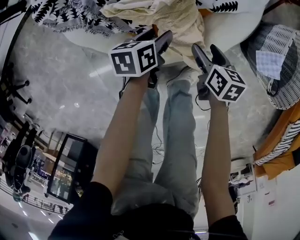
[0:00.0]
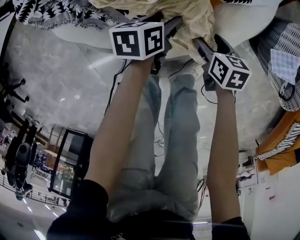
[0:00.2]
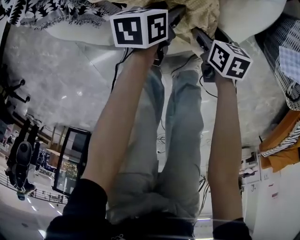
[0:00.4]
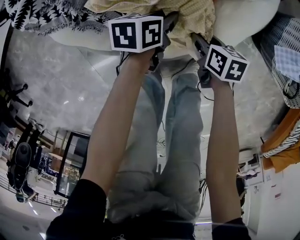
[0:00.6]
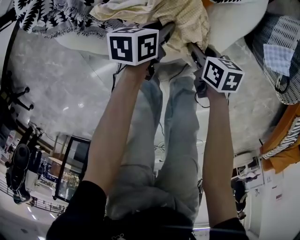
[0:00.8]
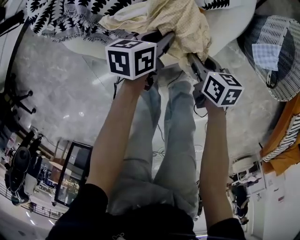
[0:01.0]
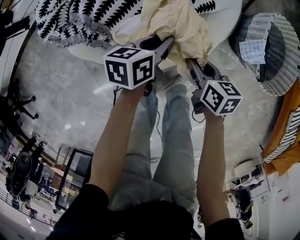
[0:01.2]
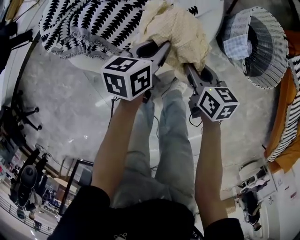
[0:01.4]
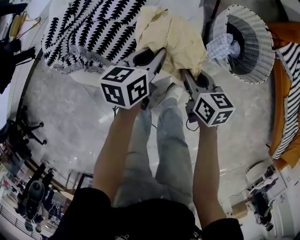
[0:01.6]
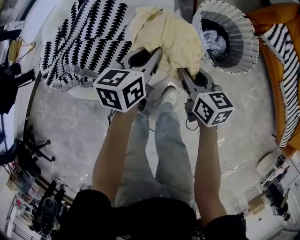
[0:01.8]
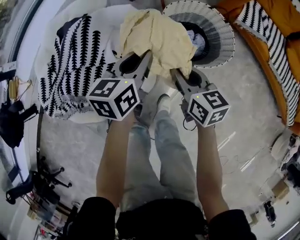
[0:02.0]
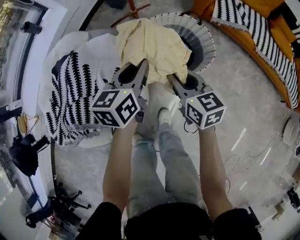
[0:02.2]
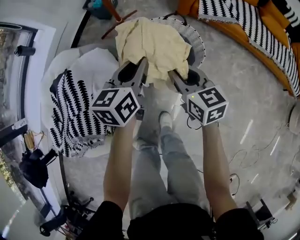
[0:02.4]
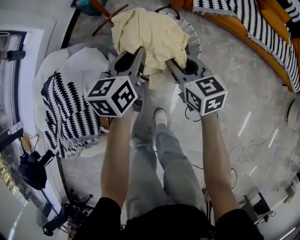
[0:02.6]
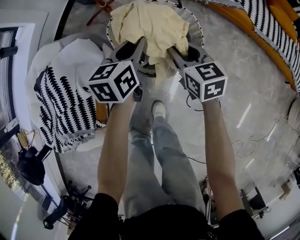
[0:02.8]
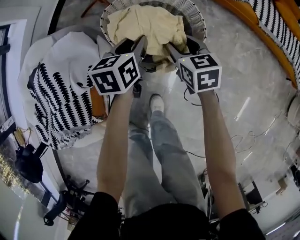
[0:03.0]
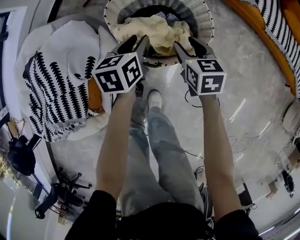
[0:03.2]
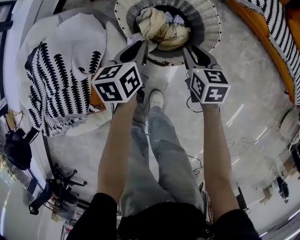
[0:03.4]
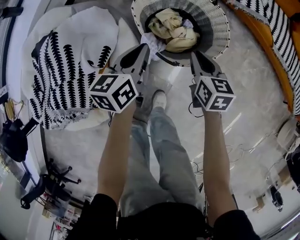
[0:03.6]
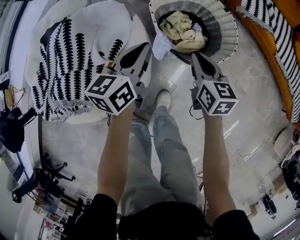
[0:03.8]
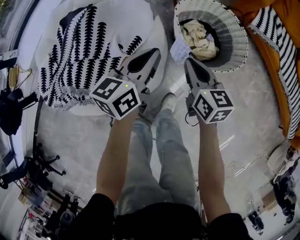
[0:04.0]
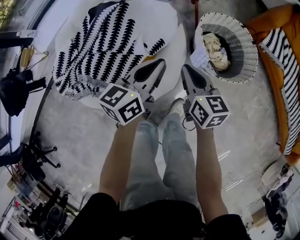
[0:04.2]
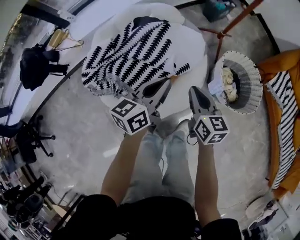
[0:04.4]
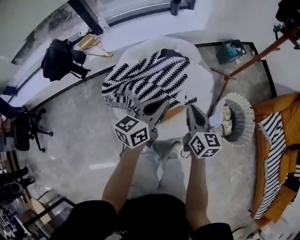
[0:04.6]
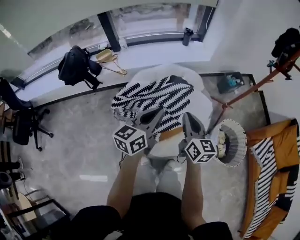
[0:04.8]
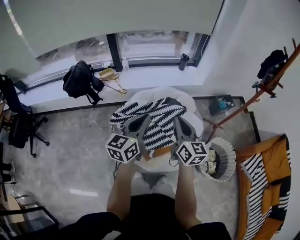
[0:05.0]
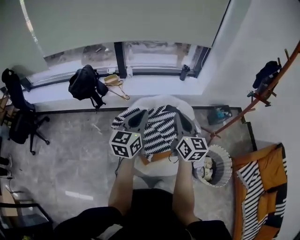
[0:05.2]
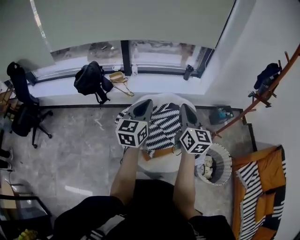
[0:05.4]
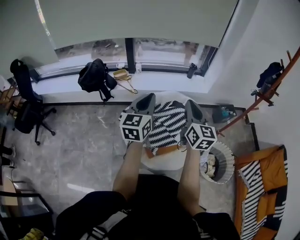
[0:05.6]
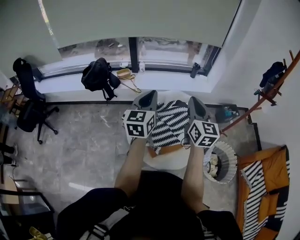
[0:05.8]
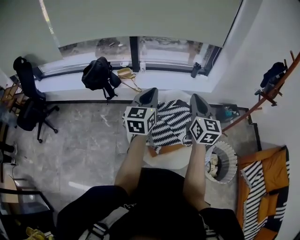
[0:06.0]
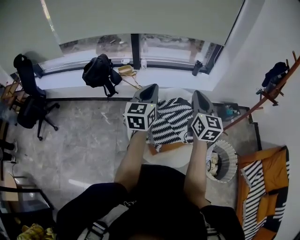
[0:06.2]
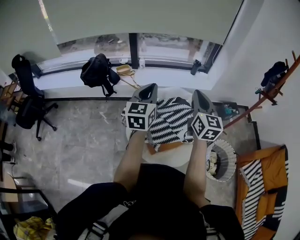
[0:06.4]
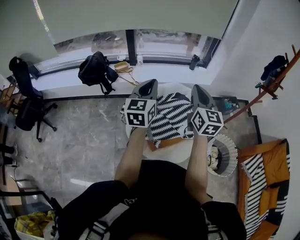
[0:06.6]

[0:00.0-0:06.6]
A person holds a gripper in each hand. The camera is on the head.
0:00.0 to 0:01.6: The left gripper goes roughly 25 cm upward and to the right, swivels approximately 30 degrees, and closes its fingers. Meanwhile the right gripper shifts roughly 20 cm upward, and closes its fingers.
0:01.6 to 0:03.2: The right gripper moves some 15 cm upward and comes back, turns by roughly 30 degrees, and opens up; the left gripper reaches about 15 cm upward, then returns, and changes its angle by roughly 20 degrees.
0:03.2 to 0:05.0: The pair of grippers is taken roughly 60 cm. The left gripper tilts its fingers approximately 40 degrees upward, and closes. The right gripper tilts its fingers some 40 degrees upward, and closes its fingers.
0:05.0 to 0:06.6: The right gripper heads upward, covering roughly 15 cm. Meanwhile the left gripper moves upward and to the left, roughly 10 cm, and swivels some 20 degrees.

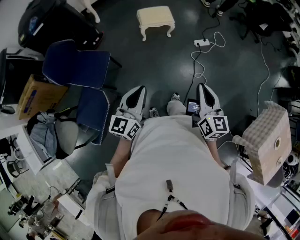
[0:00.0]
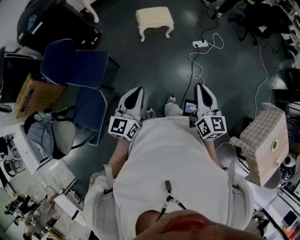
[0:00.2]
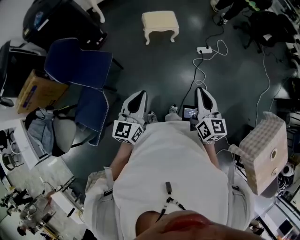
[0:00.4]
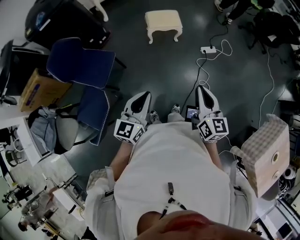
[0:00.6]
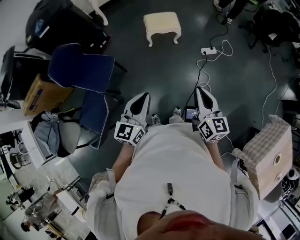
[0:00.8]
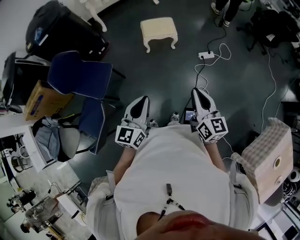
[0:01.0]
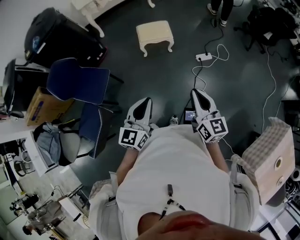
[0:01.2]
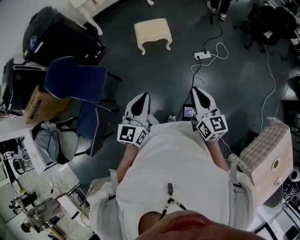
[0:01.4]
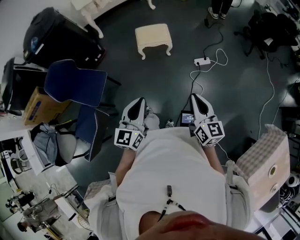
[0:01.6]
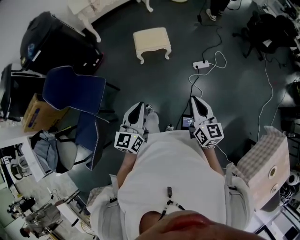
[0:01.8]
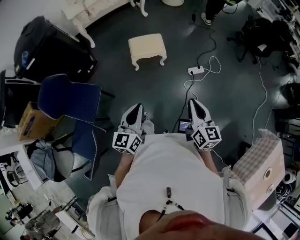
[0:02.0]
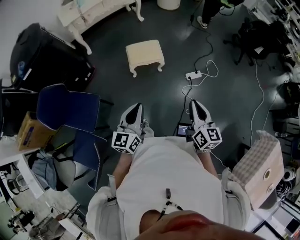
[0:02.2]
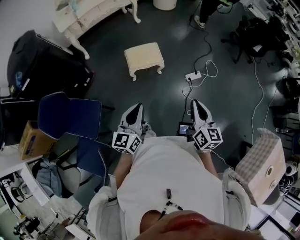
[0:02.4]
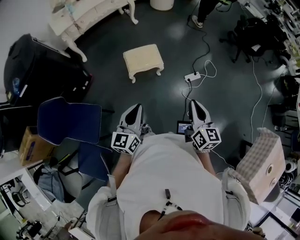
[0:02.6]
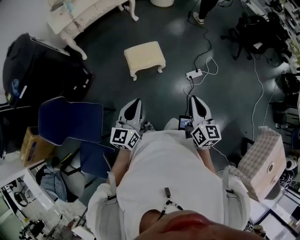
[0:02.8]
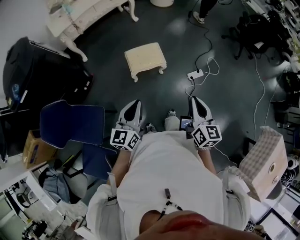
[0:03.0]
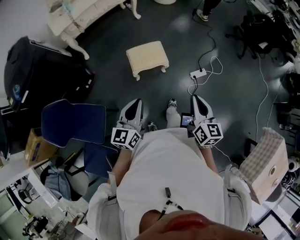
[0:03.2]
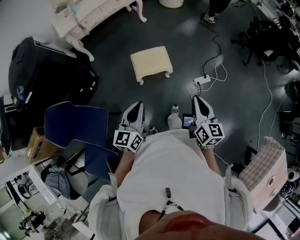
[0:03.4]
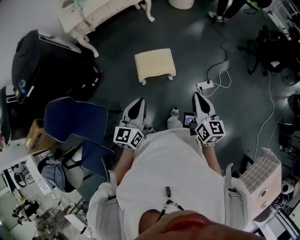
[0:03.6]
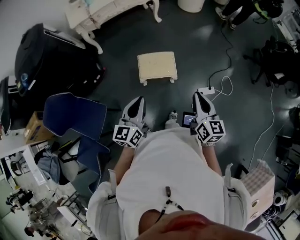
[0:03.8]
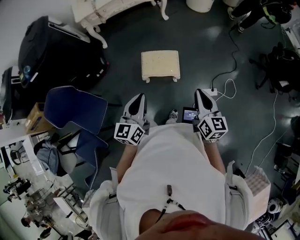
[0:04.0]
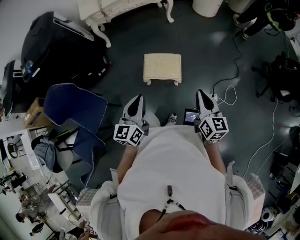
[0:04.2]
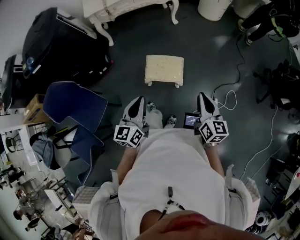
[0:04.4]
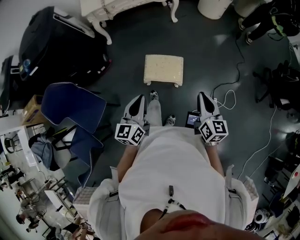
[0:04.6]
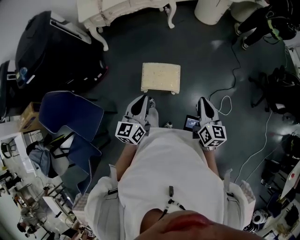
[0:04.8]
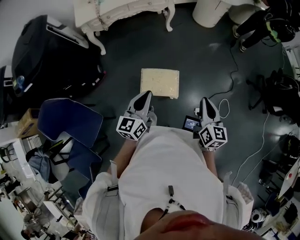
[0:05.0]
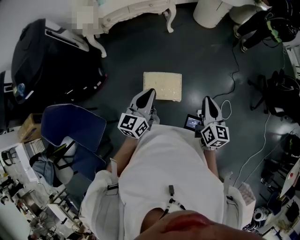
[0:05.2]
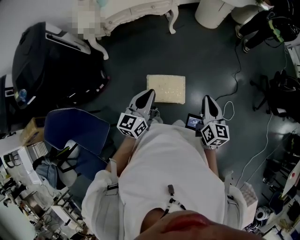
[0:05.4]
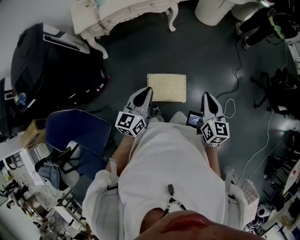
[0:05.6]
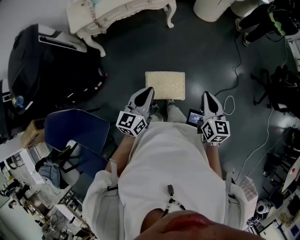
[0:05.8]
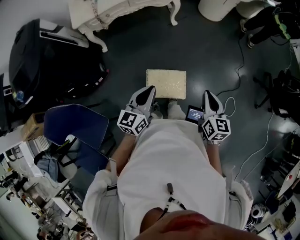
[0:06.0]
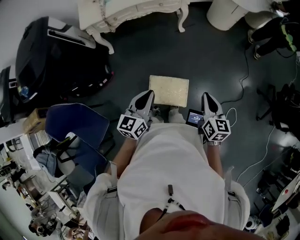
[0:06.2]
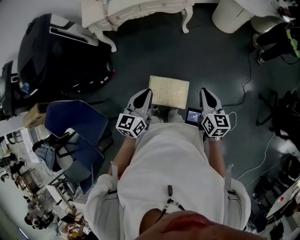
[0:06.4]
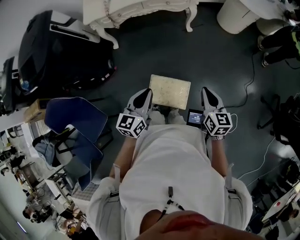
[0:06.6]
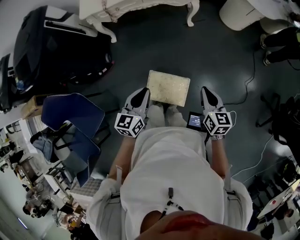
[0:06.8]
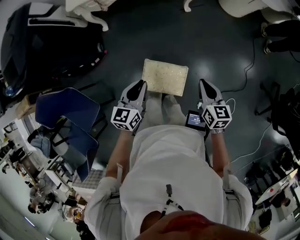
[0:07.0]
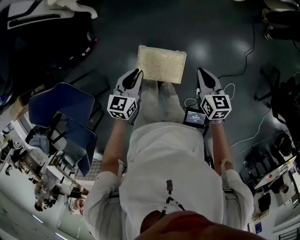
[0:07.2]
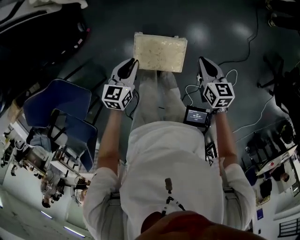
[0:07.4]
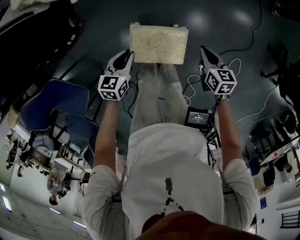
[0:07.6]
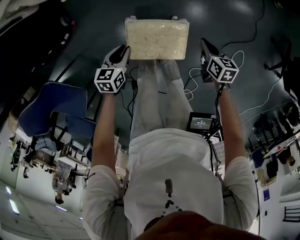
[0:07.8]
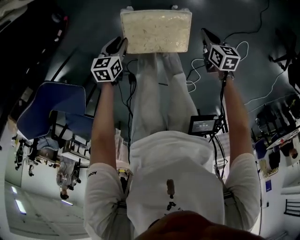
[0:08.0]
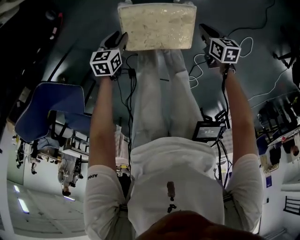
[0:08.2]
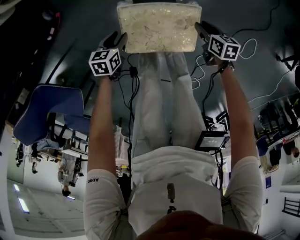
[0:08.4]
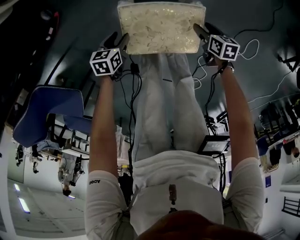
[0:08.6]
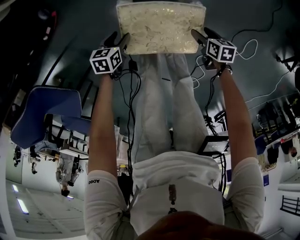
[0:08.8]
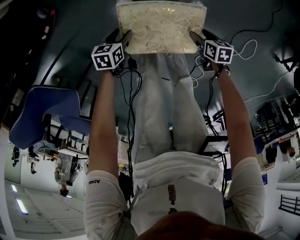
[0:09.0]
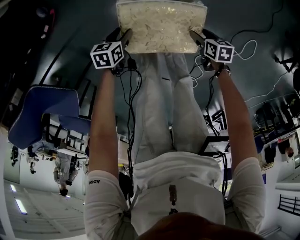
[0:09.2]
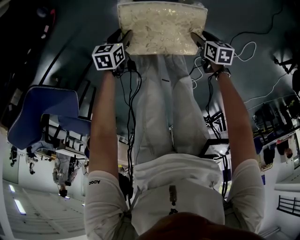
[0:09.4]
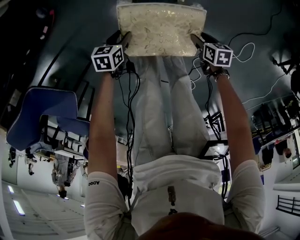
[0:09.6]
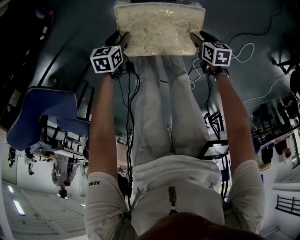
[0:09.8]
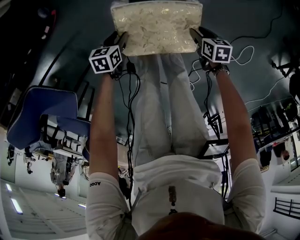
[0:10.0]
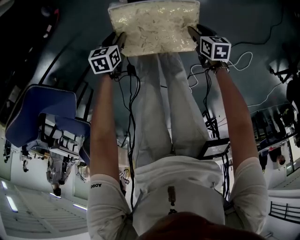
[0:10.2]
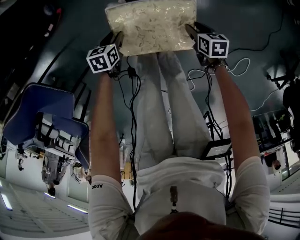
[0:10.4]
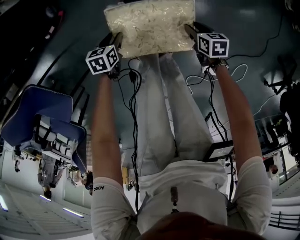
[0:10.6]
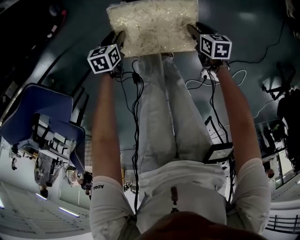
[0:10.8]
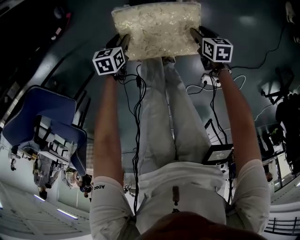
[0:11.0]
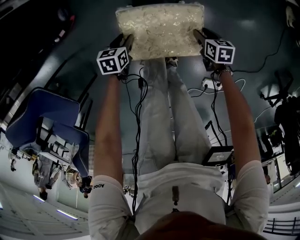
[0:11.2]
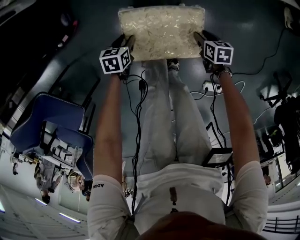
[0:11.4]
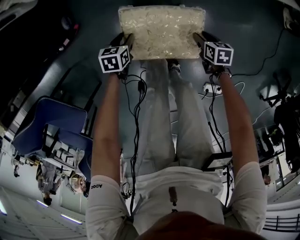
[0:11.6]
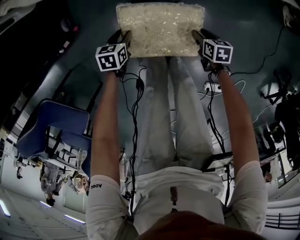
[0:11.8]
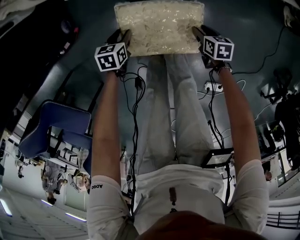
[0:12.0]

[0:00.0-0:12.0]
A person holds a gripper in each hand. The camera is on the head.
0:00.0 to 0:01.6: The left gripper is displaced to the right and forward by about 20 cm. The right gripper heads forward and to the right, covering some 15 cm.
0:01.6 to 0:03.0: Both grippers travel together forward and to the left, some 30 cm.
0:03.0 to 0:04.4: The right gripper heads forward, covering some 25 cm, and rotates roughly 20 degrees. The left gripper goes about 15 cm forward, and swivels about 30 degrees.
0:04.4 to 0:06.0: The two grippers go roughly 25 cm forward.
0:06.0 to 0:07.6: The right gripper shifts some 35 cm downward and forward, and changes its angle by roughly 30 degrees, while the left gripper moves downward, roughly 30 cm, and turns by roughly 30 degrees.
0:07.6 to 0:09.0: Both grippers travel together downward, approximately 30 cm. The right gripper turns by about 30 degrees, and opens its fingers. Meanwhile the left gripper turns by about 20 degrees, and opens up.
0:09.0 to 0:10.4: The right gripper heads forward, covering some 15 cm, and closes up. Meanwhile the left gripper goes some 5 cm forward.
0:10.4 to 0:12.0: The grippers both shift forward by about 20 cm.

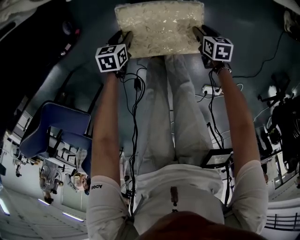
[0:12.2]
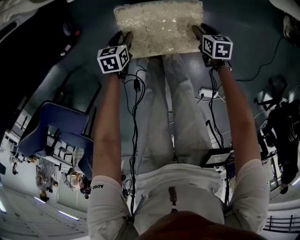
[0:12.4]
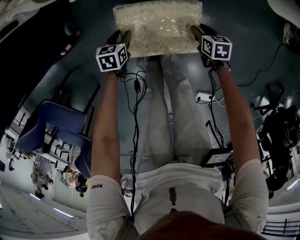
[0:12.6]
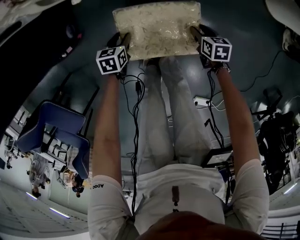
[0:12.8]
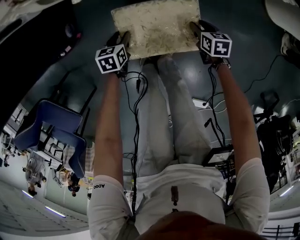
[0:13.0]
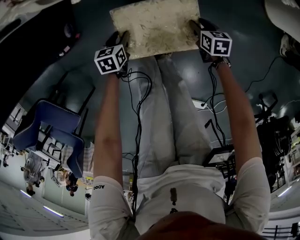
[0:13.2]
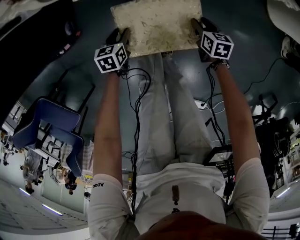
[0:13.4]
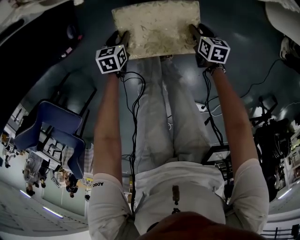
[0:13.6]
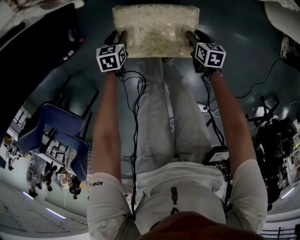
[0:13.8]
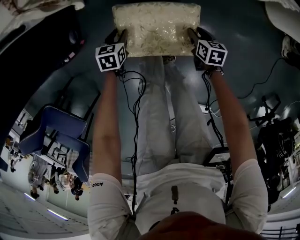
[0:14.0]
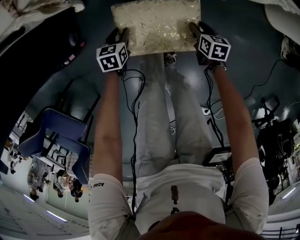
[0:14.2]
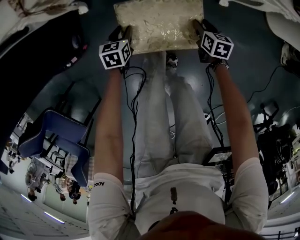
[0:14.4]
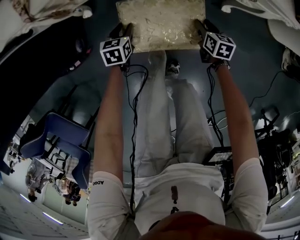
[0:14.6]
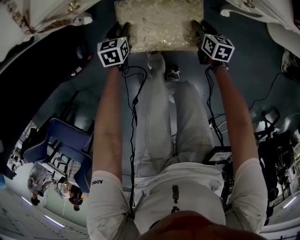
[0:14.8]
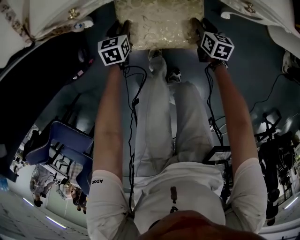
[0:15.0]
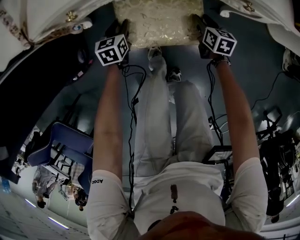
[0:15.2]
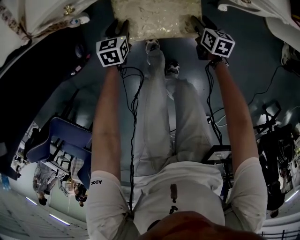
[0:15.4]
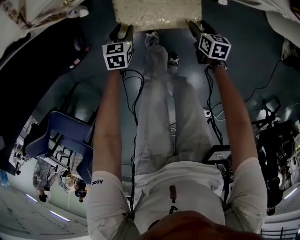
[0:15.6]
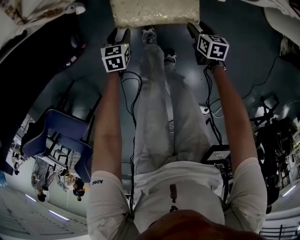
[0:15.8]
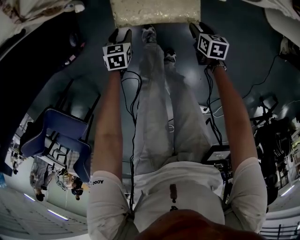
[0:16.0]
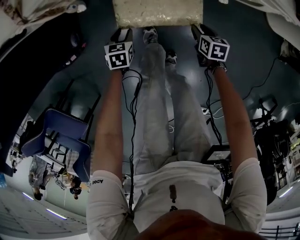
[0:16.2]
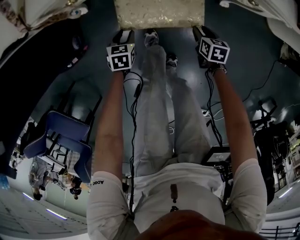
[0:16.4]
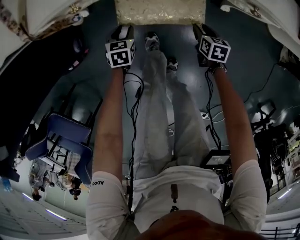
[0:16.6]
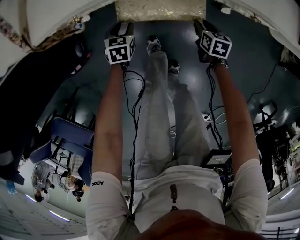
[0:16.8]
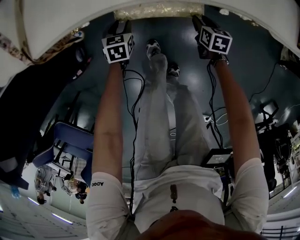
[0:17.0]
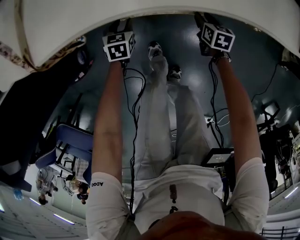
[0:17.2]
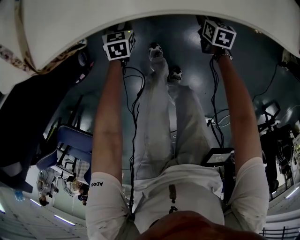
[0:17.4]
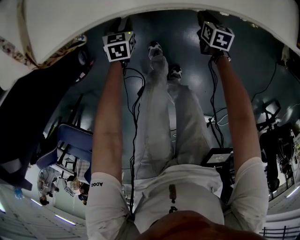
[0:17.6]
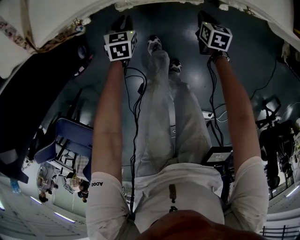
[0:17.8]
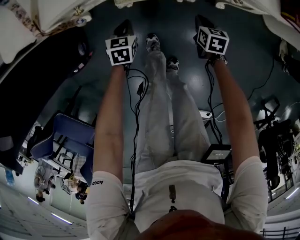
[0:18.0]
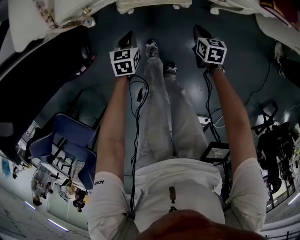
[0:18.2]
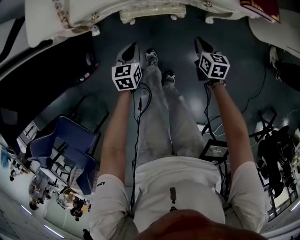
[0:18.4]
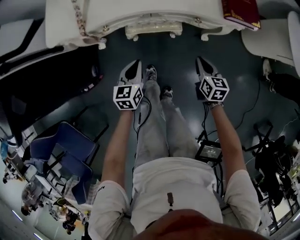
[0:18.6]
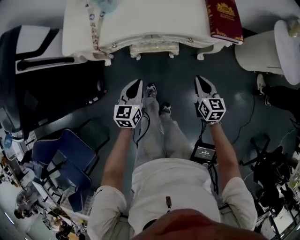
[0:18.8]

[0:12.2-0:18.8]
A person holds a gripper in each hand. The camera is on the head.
0:12.2 to 0:13.8: The two grippers go roughly 15 cm forward.
0:13.8 to 0:15.4: Both grippers travel together forward, some 15 cm.
0:15.4 to 0:17.2: Both grippers move forward, roughly 10 cm.
0:17.2 to 0:18.8: Both grippers move upward and backward, approximately 40 cm. The right gripper changes its angle by approximately 30 degrees, and closes. Meanwhile the left gripper tips its fingers upward by about 30 degrees, and closes up.
